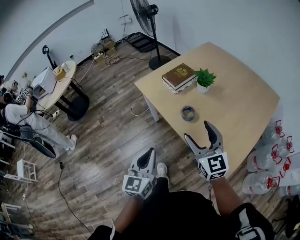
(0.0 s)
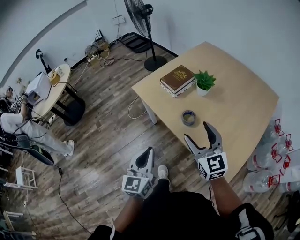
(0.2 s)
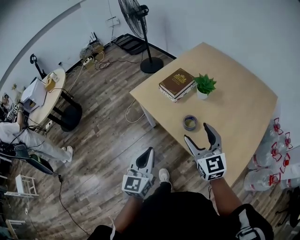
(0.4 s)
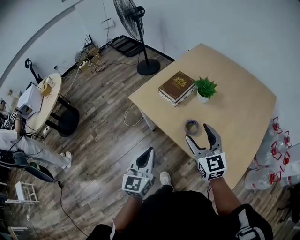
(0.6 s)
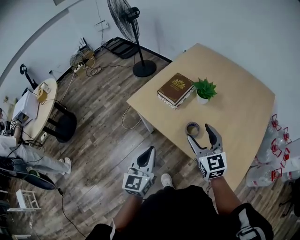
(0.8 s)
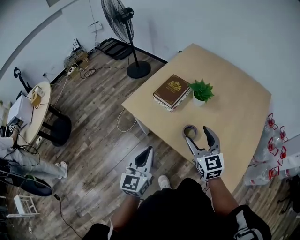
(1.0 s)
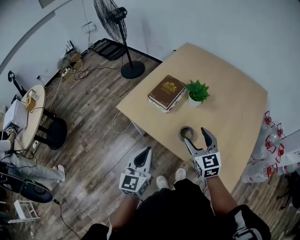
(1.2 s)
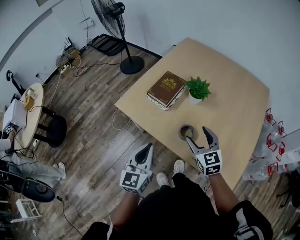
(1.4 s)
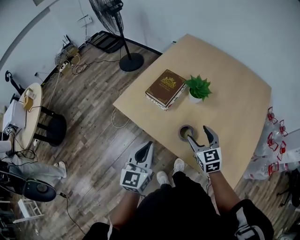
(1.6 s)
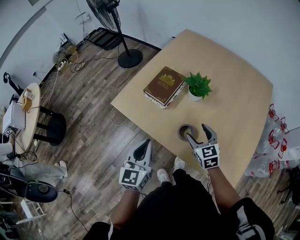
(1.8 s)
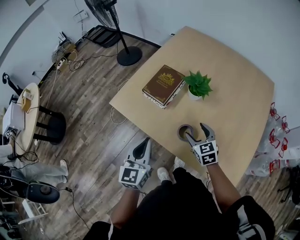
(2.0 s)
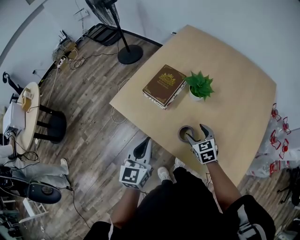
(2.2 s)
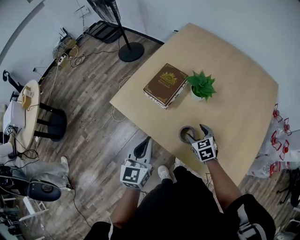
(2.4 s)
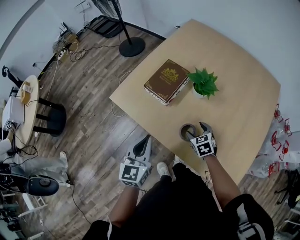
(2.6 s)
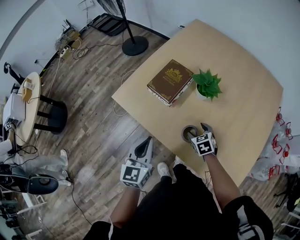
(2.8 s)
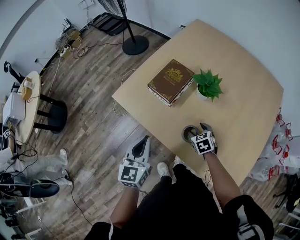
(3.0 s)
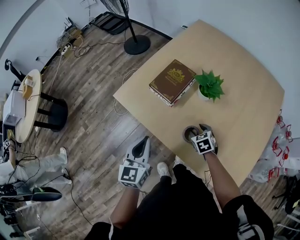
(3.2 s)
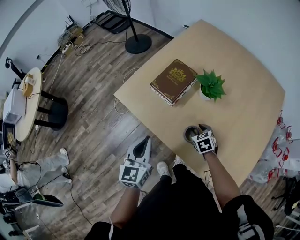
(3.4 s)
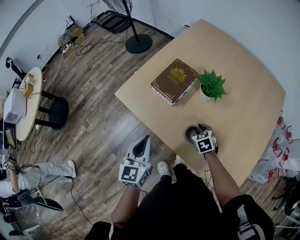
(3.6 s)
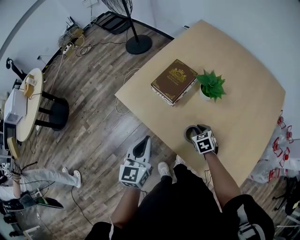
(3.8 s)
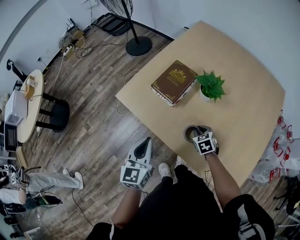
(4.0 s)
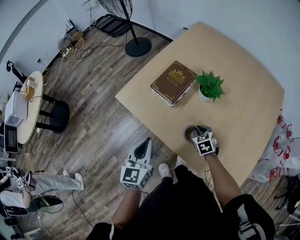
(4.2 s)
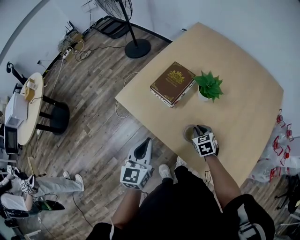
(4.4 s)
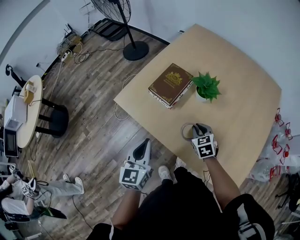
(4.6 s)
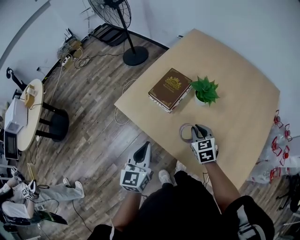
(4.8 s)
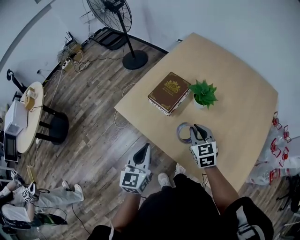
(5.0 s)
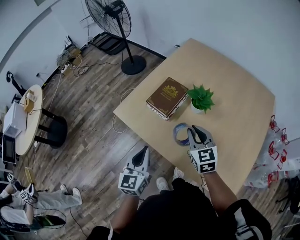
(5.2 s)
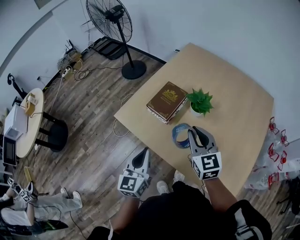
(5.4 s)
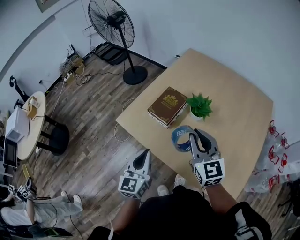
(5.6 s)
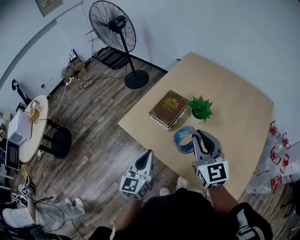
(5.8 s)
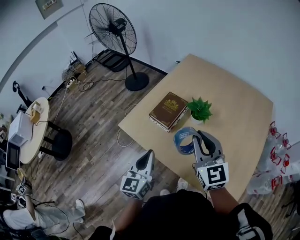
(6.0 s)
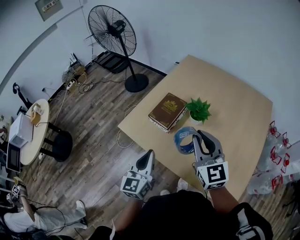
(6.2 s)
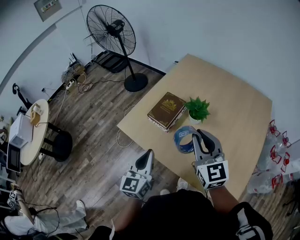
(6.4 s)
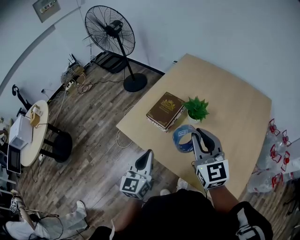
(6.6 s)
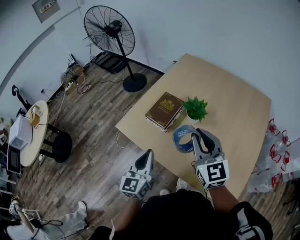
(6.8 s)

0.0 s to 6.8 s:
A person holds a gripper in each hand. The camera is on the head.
0.0 to 1.4 s: The right gripper shifts about 20 cm forward and downward, and swivels roughly 30 degrees. The left gripper goes about 25 cm forward.
1.4 to 2.8 s: The left gripper moves forward and downward, roughly 10 cm. The right gripper moves downward and forward, about 20 cm, and points its fingers about 30 degrees further downward.
2.8 to 4.0 s: The right gripper closes its fingers.
4.0 to 5.4 s: The right gripper goes some 25 cm upward, and tilts its fingers some 40 degrees upward.
5.4 to 6.8 s: The right gripper shifts approximately 10 cm upward.

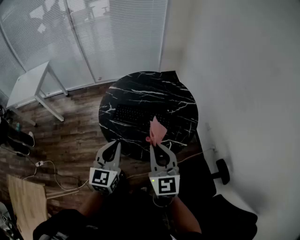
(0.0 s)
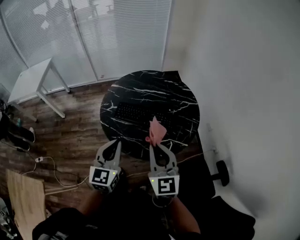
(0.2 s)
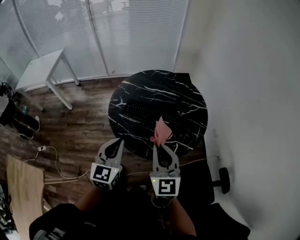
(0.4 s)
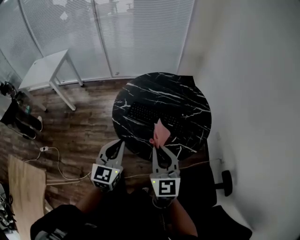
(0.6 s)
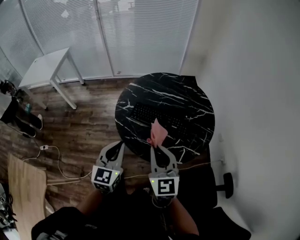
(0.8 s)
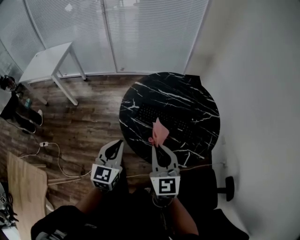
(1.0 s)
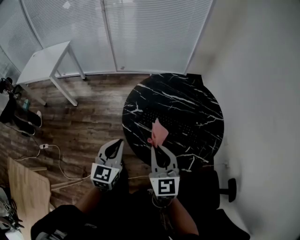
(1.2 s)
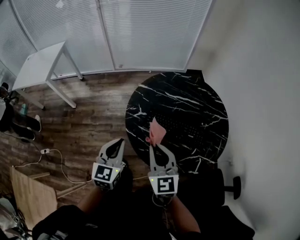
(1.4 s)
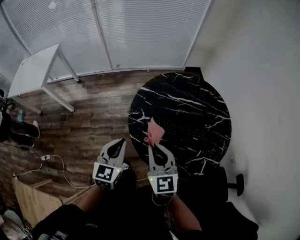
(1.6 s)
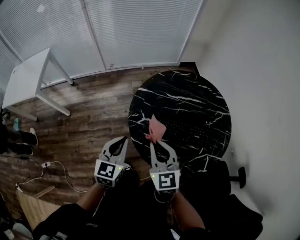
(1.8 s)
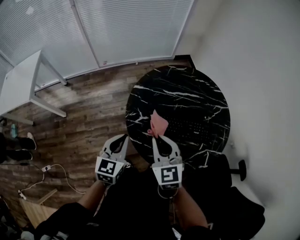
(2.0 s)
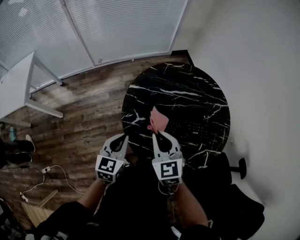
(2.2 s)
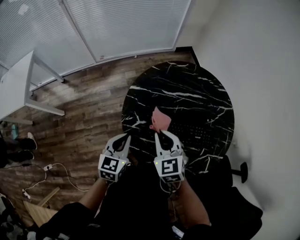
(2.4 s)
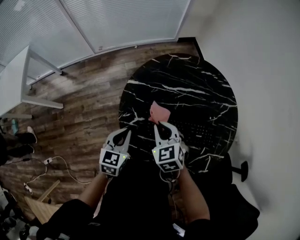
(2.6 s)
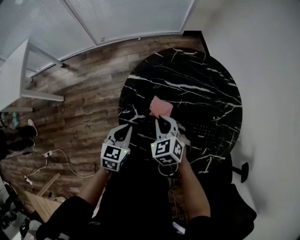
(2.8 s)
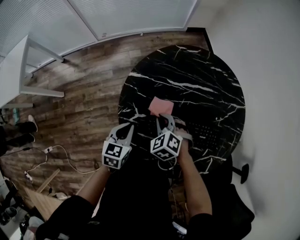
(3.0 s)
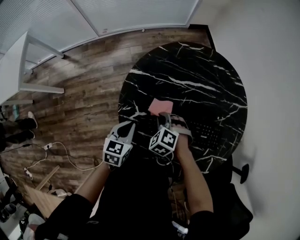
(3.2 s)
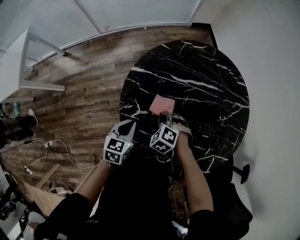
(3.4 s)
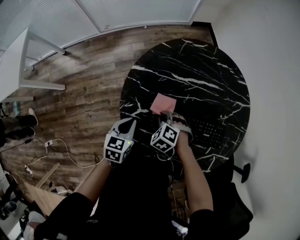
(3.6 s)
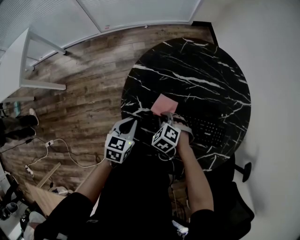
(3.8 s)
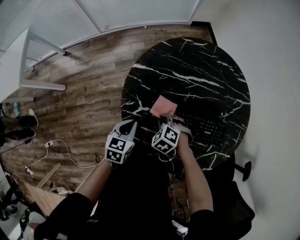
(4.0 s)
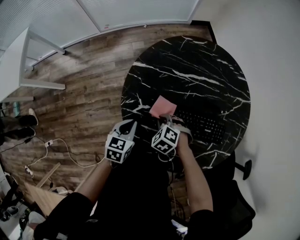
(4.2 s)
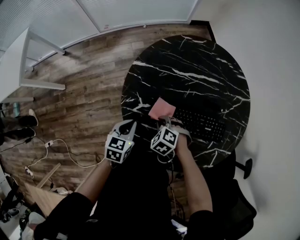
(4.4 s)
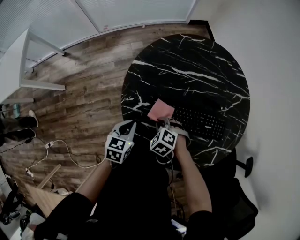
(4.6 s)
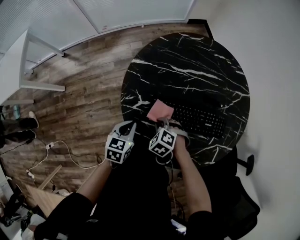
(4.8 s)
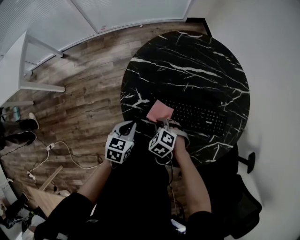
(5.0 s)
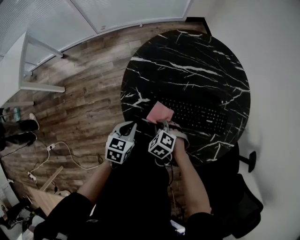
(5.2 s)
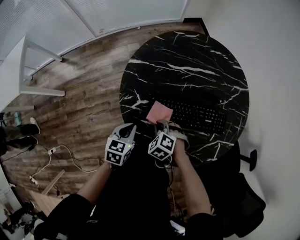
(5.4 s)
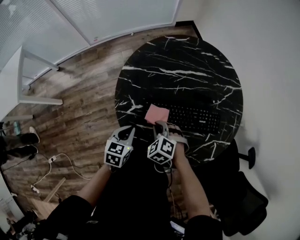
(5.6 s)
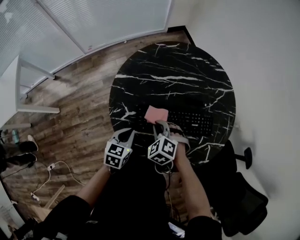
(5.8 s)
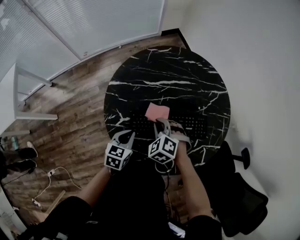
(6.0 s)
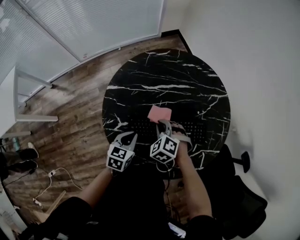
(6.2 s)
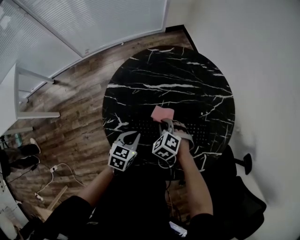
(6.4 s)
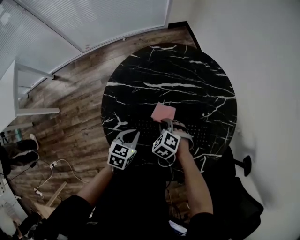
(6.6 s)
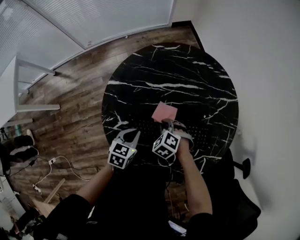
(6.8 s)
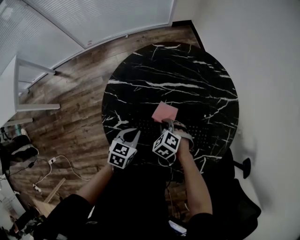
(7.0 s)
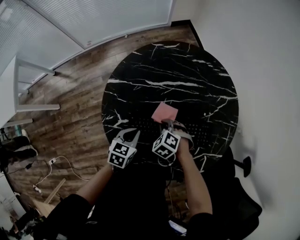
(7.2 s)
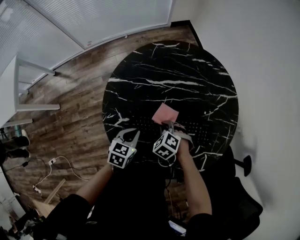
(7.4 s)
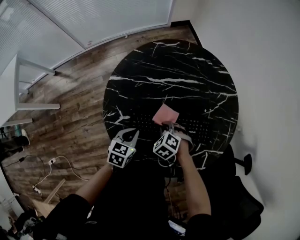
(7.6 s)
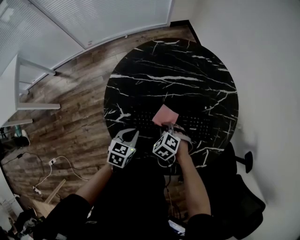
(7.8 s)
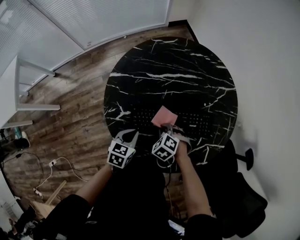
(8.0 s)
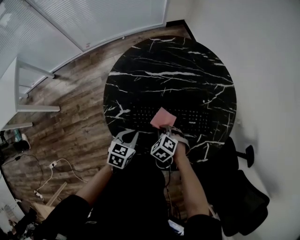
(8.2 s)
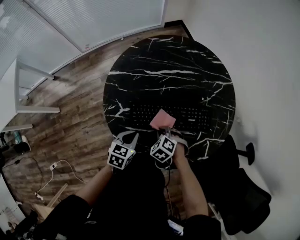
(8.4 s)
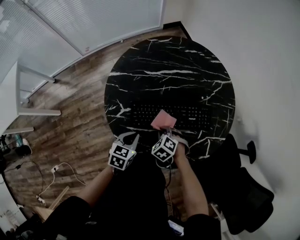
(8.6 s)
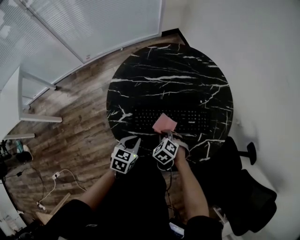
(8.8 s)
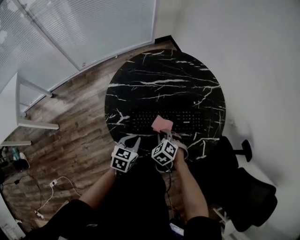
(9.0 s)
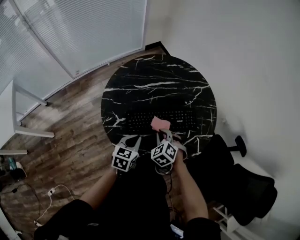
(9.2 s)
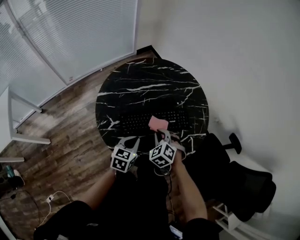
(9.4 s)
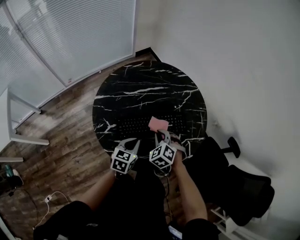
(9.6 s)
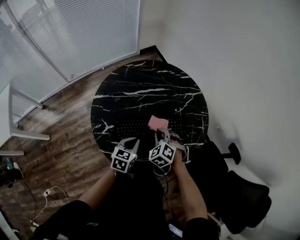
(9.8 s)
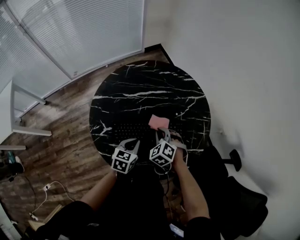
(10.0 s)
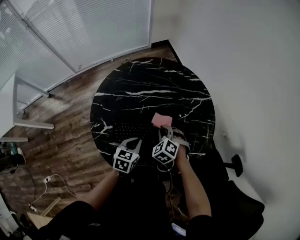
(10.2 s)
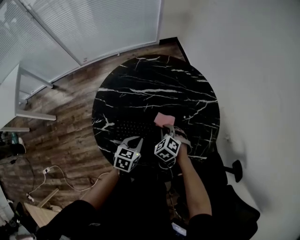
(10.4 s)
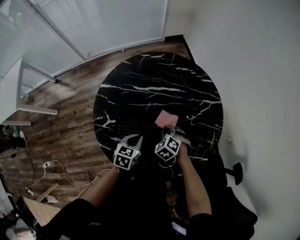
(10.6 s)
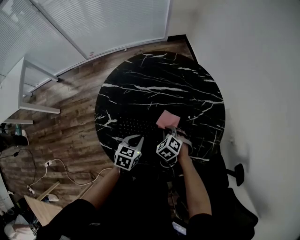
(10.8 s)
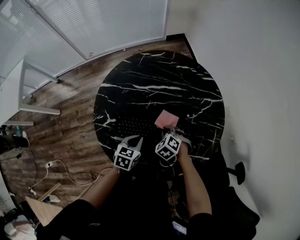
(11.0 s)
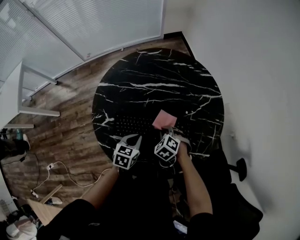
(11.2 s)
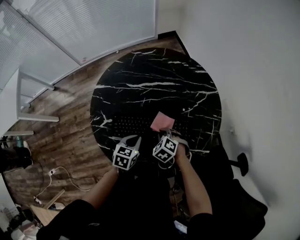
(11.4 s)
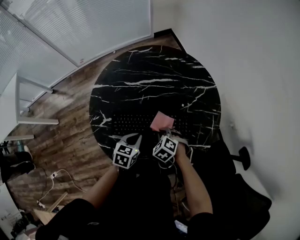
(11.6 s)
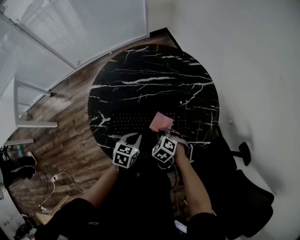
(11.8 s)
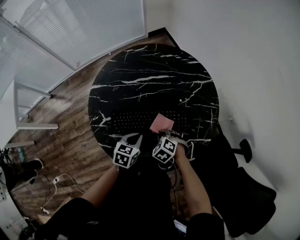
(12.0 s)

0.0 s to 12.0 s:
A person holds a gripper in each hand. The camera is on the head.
0.0 to 1.6 s: Both grippers travel together to the left and forward, about 30 cm.
1.6 to 3.0 s: The grippers both shift downward and forward by approximately 30 cm. The left gripper swivels some 20 degrees; the right gripper tips its fingers downward by some 40 degrees.
3.0 to 4.4 s: The right gripper goes approximately 10 cm downward and backward, while the left gripper ends up roughly 5 cm from where it was.
4.4 to 6.0 s: The right gripper travels upward and to the right by approximately 15 cm. Meanwhile the left gripper shifts roughly 10 cm to the right.
6.0 to 7.6 s: The right gripper shifts approximately 10 cm downward.
7.6 to 9.0 s: The two grippers go roughly 5 cm backward.
9.0 to 10.4 s: The two grippers go some 15 cm forward and to the right.
10.4 to 12.0 s: The right gripper goes roughly 10 cm backward.

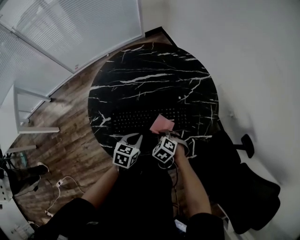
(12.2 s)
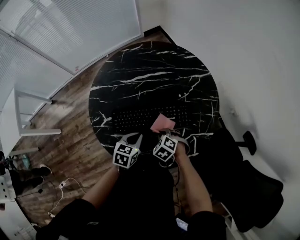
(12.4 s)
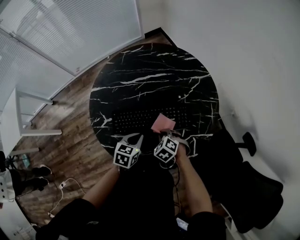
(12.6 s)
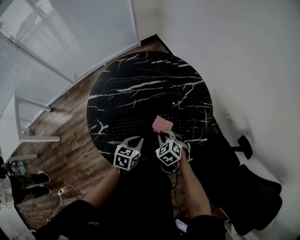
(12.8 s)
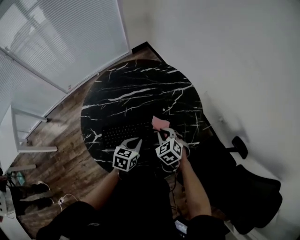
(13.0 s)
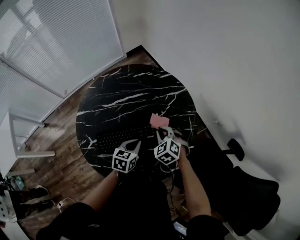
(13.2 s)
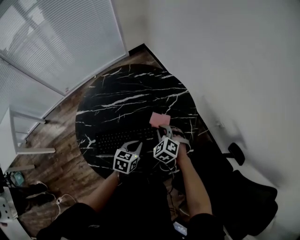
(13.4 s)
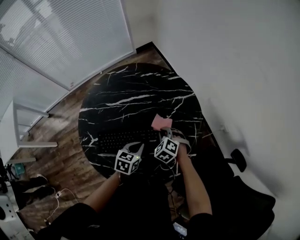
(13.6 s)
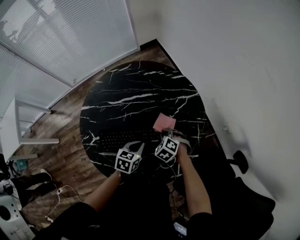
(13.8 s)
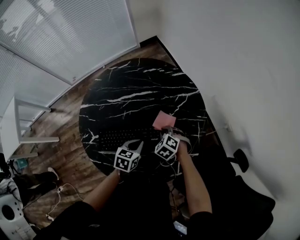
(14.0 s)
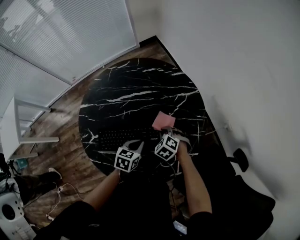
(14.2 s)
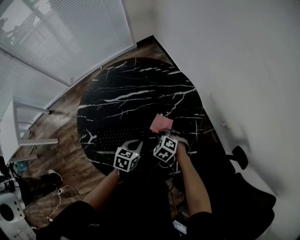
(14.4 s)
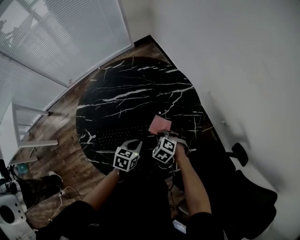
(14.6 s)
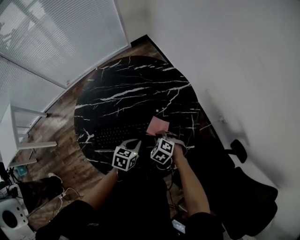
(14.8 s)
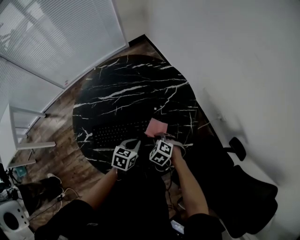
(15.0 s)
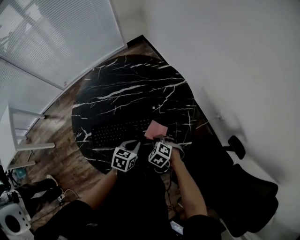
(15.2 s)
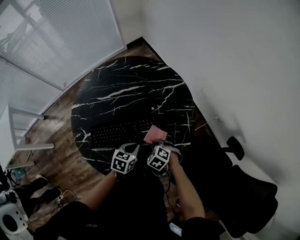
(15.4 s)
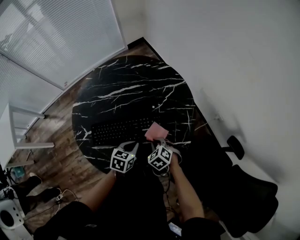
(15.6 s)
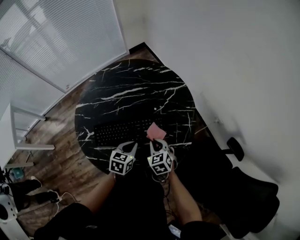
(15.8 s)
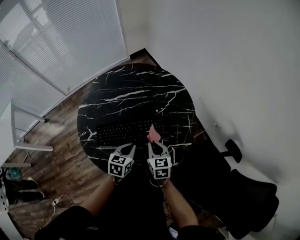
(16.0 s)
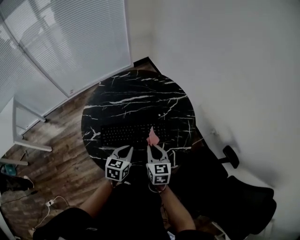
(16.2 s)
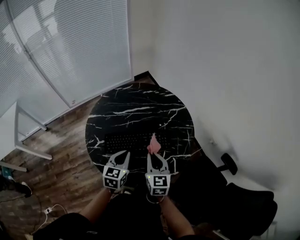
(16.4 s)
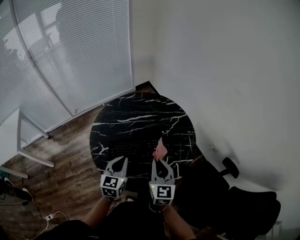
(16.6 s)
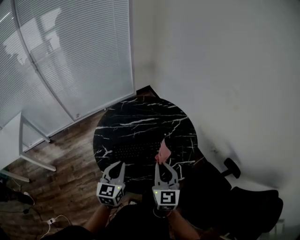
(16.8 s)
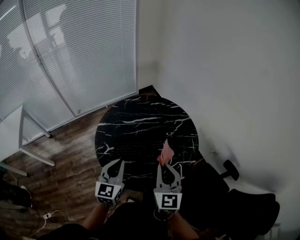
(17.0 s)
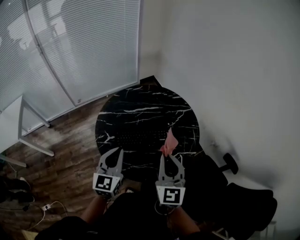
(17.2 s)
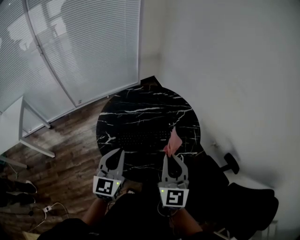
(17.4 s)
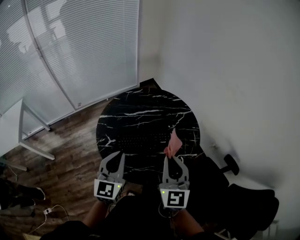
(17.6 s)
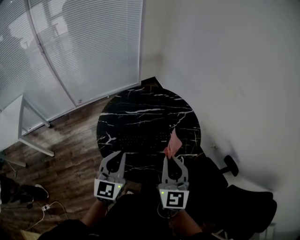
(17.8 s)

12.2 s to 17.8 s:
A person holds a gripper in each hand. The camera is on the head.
12.2 to 13.6 s: The left gripper travels to the right and forward by about 10 cm; the right gripper shifts some 15 cm forward and to the right.
13.6 to 15.0 s: The right gripper goes roughly 10 cm backward.
15.0 to 16.4 s: The right gripper goes roughly 20 cm upward, and tips its fingers upward by roughly 50 degrees. The left gripper heads upward, to the left and backward, covering roughly 20 cm, and swivels approximately 30 degrees.
16.4 to 17.8 s: The left gripper shifts roughly 20 cm upward, to the left and backward, and turns by about 20 degrees; the right gripper is displaced upward and backward by roughly 20 cm, and rotates some 20 degrees.
